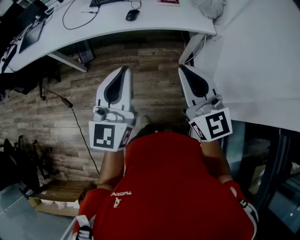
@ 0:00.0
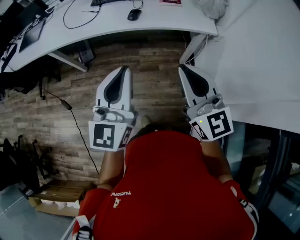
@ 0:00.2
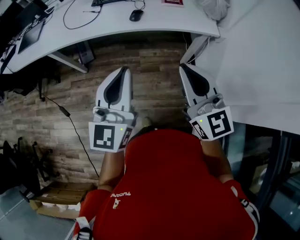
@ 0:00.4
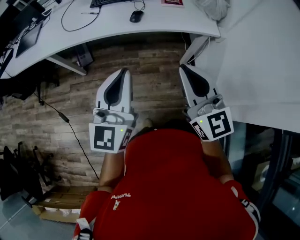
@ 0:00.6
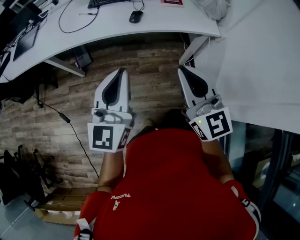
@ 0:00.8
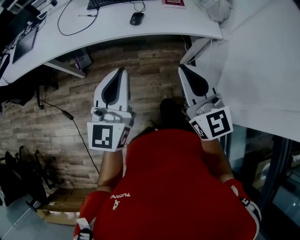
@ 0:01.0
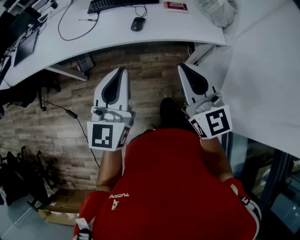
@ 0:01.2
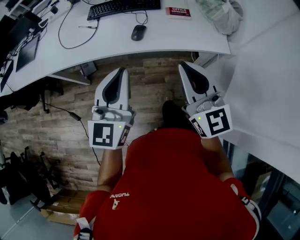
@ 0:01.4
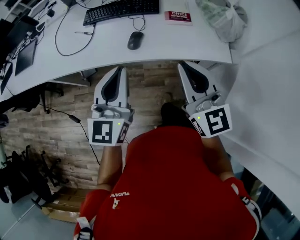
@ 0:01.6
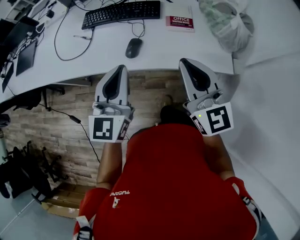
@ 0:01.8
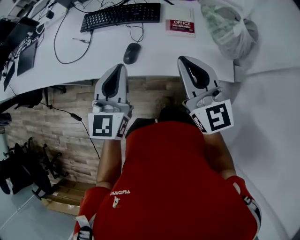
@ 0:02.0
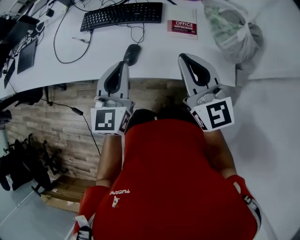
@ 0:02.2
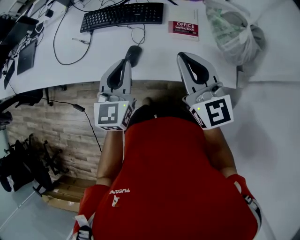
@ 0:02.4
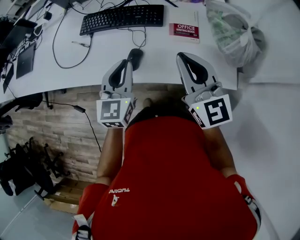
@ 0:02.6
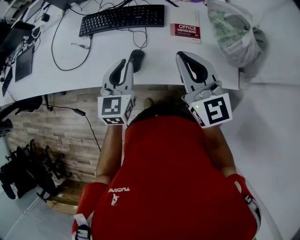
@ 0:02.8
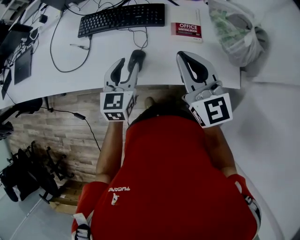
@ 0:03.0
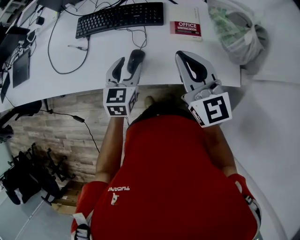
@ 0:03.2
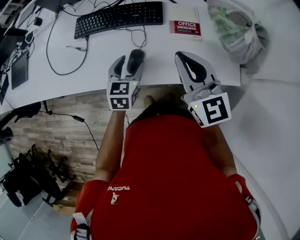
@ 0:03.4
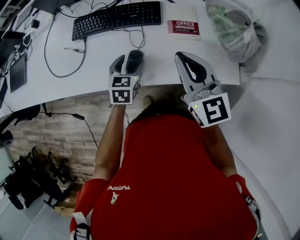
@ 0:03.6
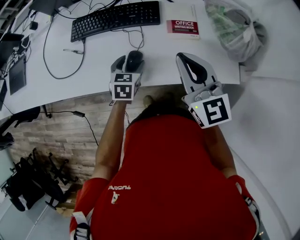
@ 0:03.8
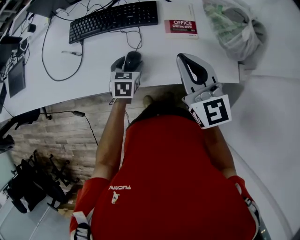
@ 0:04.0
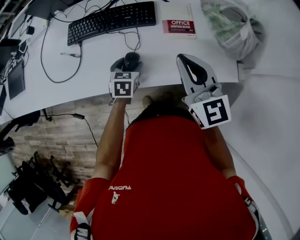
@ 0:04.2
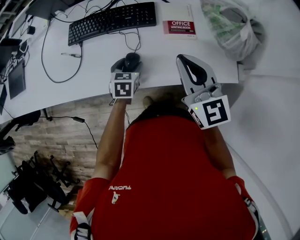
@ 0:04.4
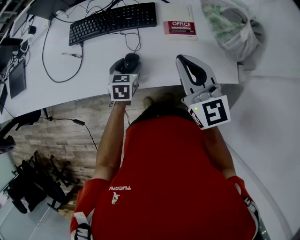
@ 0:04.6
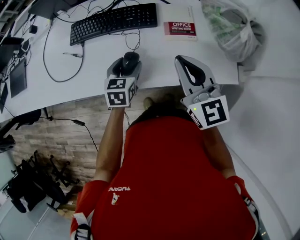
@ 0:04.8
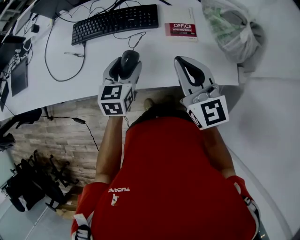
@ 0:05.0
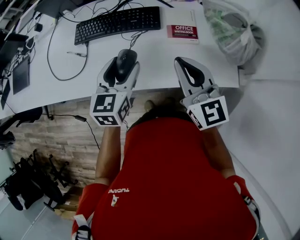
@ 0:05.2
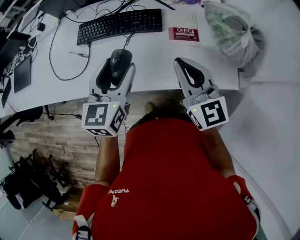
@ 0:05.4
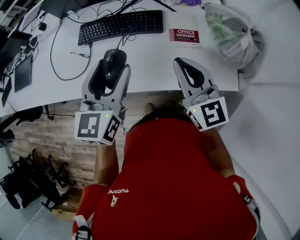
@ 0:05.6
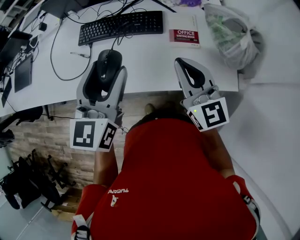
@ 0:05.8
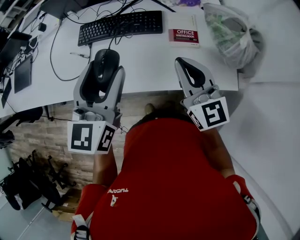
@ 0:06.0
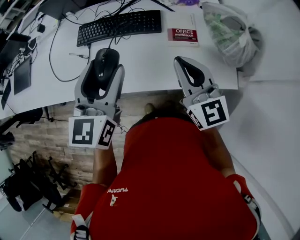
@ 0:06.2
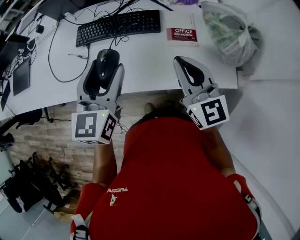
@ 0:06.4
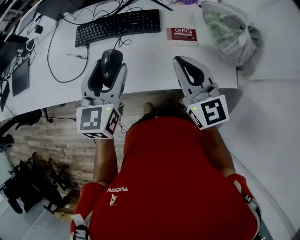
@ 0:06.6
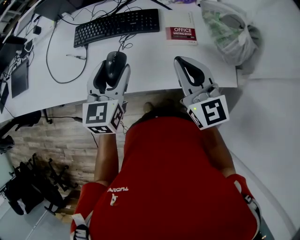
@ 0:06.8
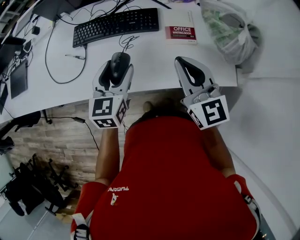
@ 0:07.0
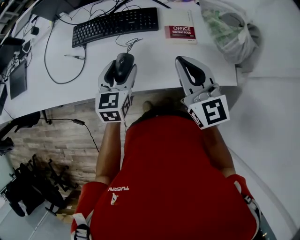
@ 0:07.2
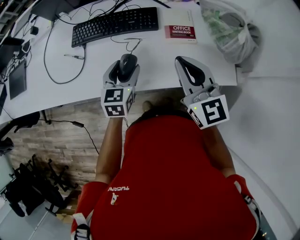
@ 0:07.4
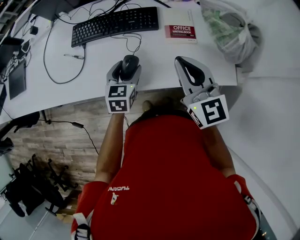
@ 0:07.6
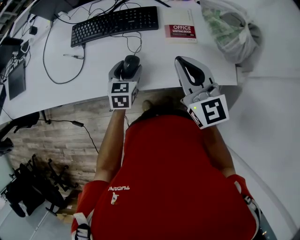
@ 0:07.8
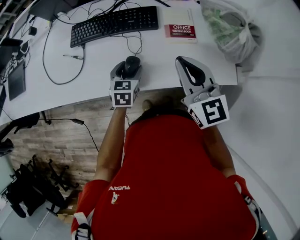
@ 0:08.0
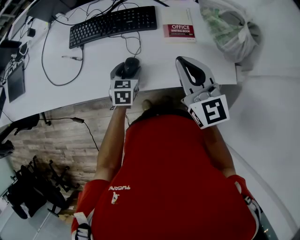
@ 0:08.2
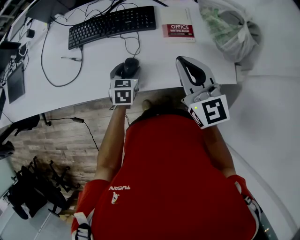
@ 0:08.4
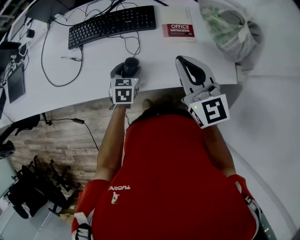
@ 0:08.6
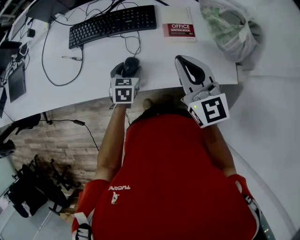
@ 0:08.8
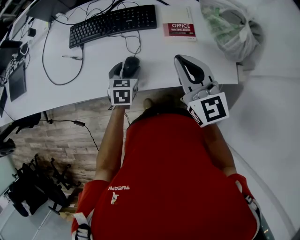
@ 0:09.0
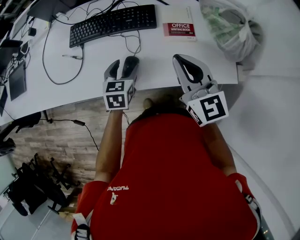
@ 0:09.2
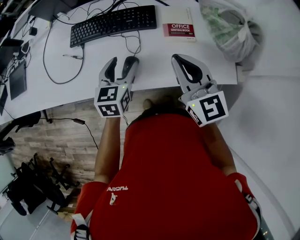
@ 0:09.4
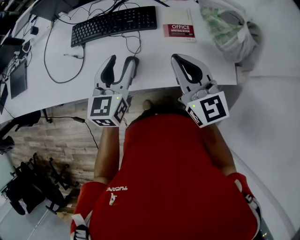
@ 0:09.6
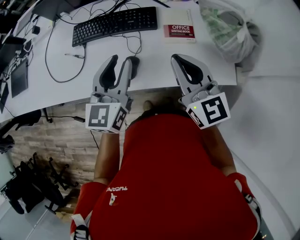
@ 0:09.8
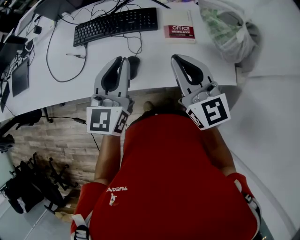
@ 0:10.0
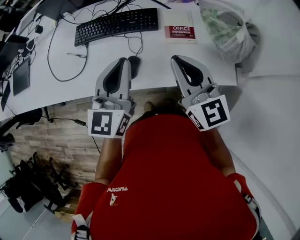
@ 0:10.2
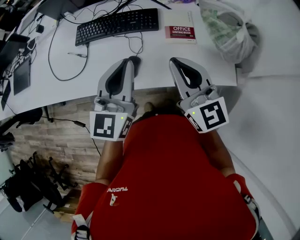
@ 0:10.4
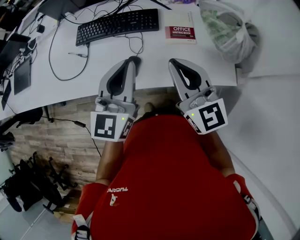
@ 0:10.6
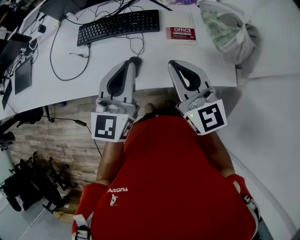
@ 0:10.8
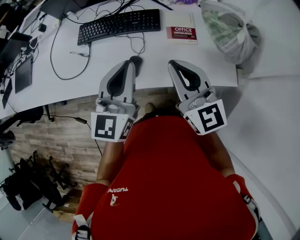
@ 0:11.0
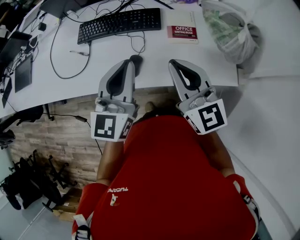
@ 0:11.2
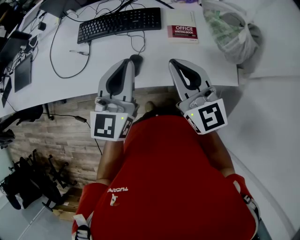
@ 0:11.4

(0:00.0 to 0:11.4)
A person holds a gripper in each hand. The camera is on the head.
0:00.0 - 0:01.4: Both grippers move forward, roughly 20 cm.
0:01.4 - 0:02.8: The right gripper moves forward, roughly 25 cm. Meanwhile the left gripper moves forward and downward, about 30 cm, and changes its angle by approximately 20 degrees.
0:02.8 - 0:04.2: The left gripper is displaced downward by about 15 cm, angles its fingers downward, by approximately 30 degrees, and opens its fingers.
0:04.2 - 0:05.6: The left gripper shifts about 30 cm upward, and tips its fingers upward by about 40 degrees.
0:05.6 - 0:07.2: The left gripper travels downward by approximately 15 cm.
0:07.2 - 0:08.6: The left gripper travels downward by roughly 15 cm, and rotates some 20 degrees.
0:08.6 - 0:10.0: The left gripper goes about 25 cm upward, tilts its fingers approximately 40 degrees upward, and closes.
0:10.0 - 0:11.4: The grippers move only a little.

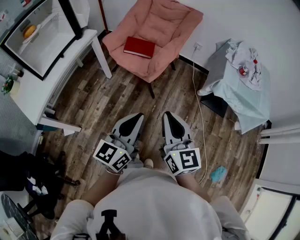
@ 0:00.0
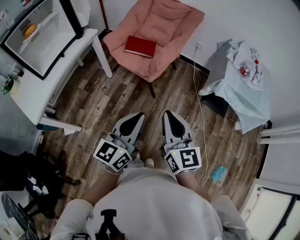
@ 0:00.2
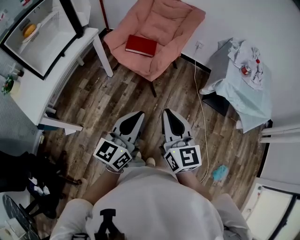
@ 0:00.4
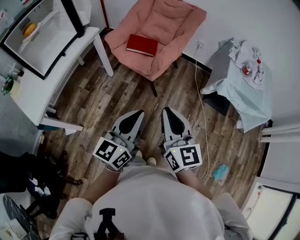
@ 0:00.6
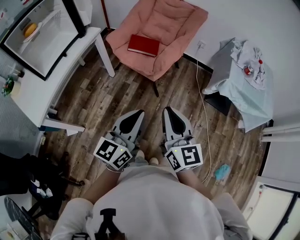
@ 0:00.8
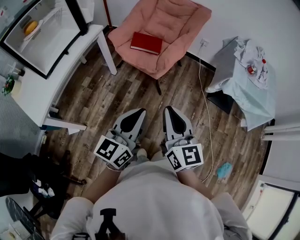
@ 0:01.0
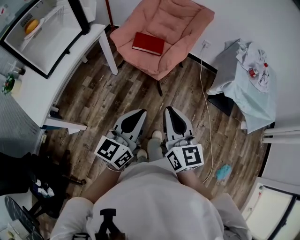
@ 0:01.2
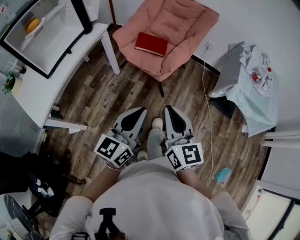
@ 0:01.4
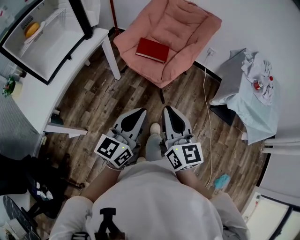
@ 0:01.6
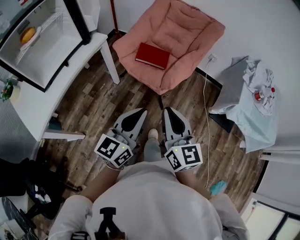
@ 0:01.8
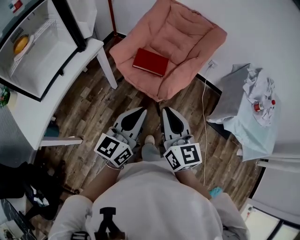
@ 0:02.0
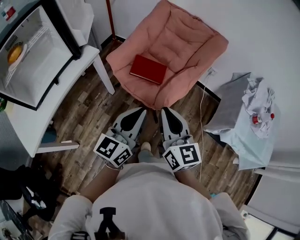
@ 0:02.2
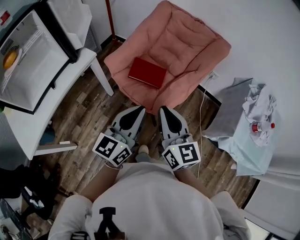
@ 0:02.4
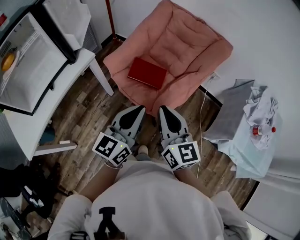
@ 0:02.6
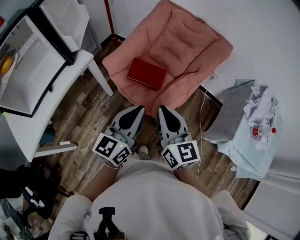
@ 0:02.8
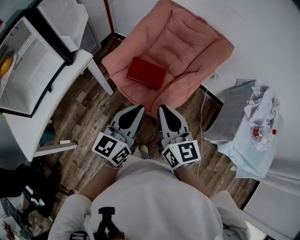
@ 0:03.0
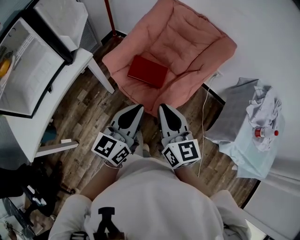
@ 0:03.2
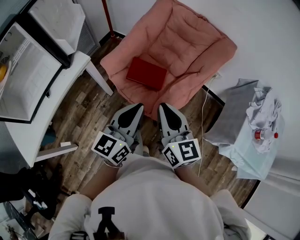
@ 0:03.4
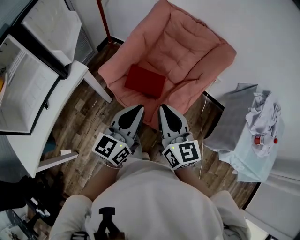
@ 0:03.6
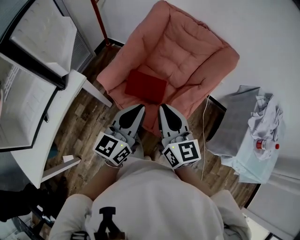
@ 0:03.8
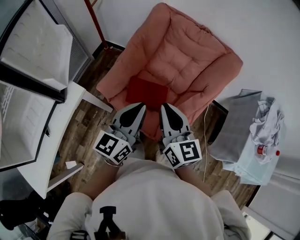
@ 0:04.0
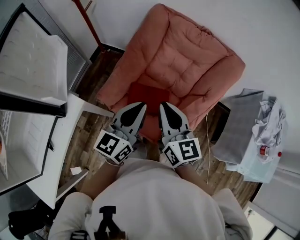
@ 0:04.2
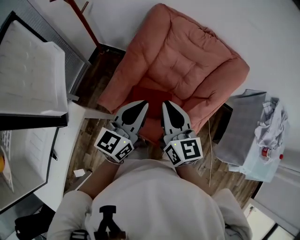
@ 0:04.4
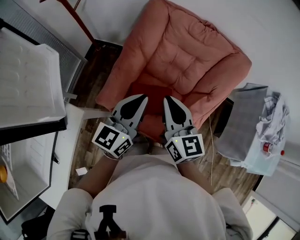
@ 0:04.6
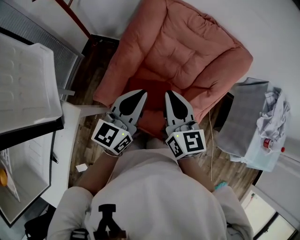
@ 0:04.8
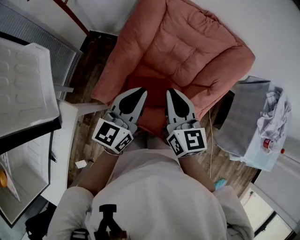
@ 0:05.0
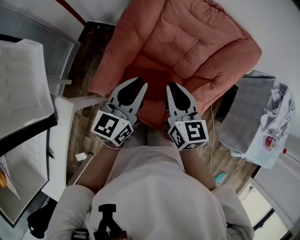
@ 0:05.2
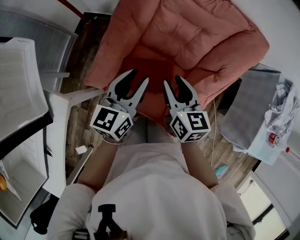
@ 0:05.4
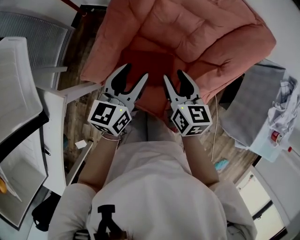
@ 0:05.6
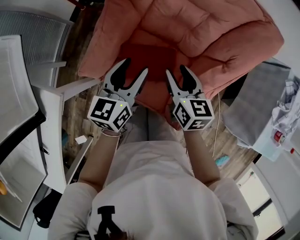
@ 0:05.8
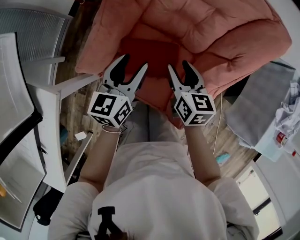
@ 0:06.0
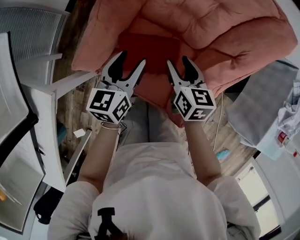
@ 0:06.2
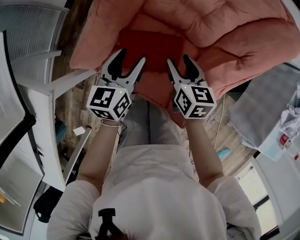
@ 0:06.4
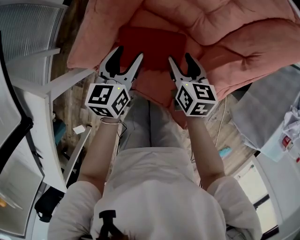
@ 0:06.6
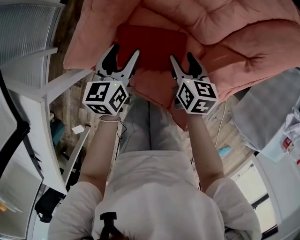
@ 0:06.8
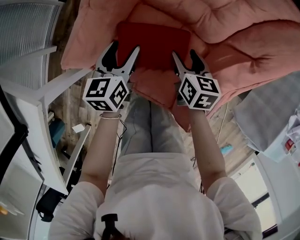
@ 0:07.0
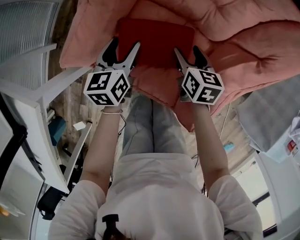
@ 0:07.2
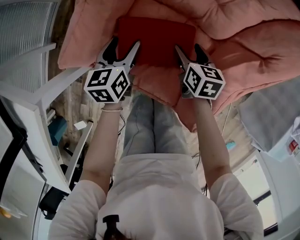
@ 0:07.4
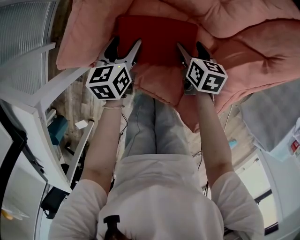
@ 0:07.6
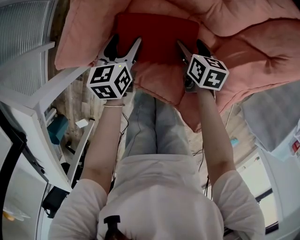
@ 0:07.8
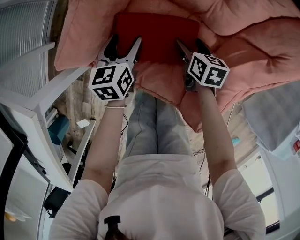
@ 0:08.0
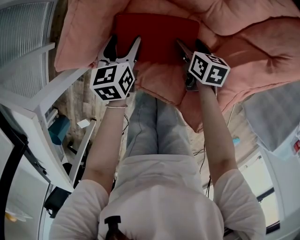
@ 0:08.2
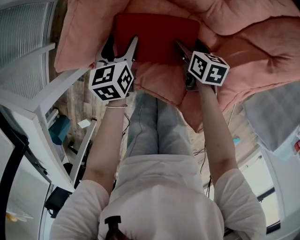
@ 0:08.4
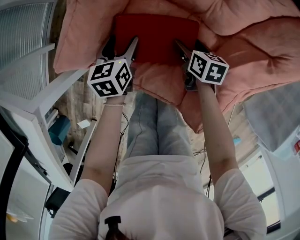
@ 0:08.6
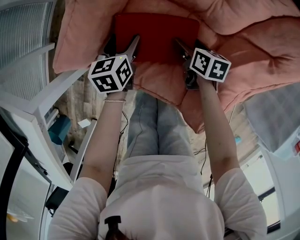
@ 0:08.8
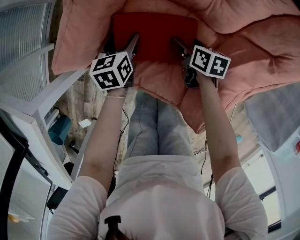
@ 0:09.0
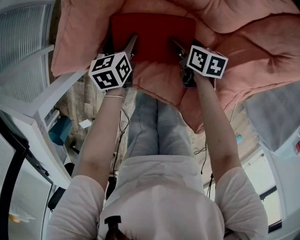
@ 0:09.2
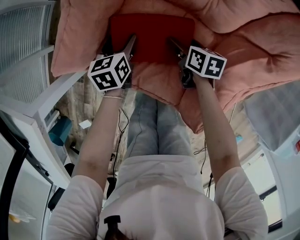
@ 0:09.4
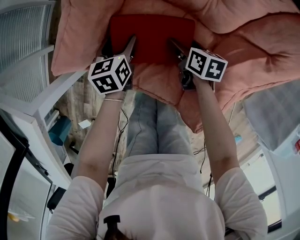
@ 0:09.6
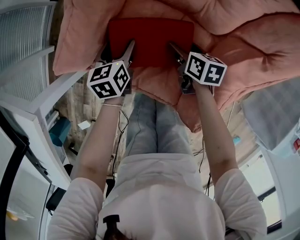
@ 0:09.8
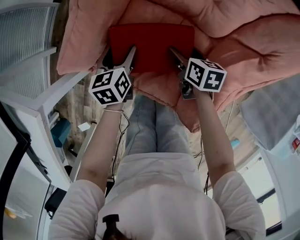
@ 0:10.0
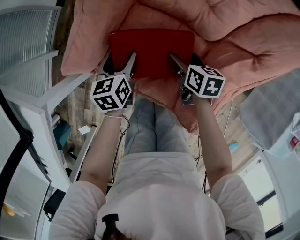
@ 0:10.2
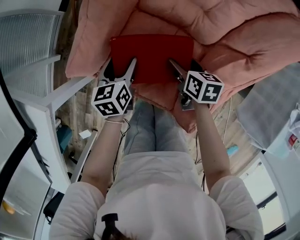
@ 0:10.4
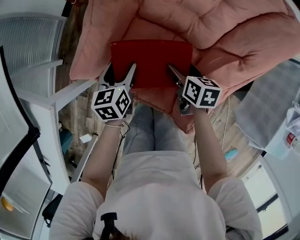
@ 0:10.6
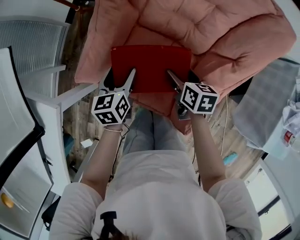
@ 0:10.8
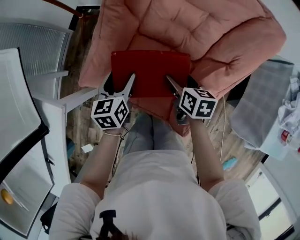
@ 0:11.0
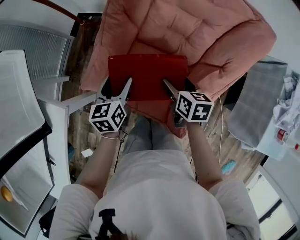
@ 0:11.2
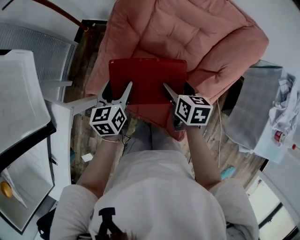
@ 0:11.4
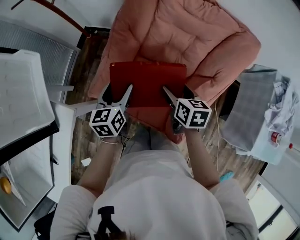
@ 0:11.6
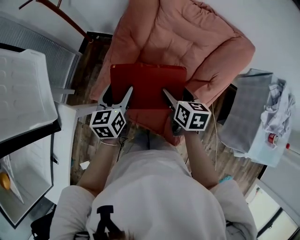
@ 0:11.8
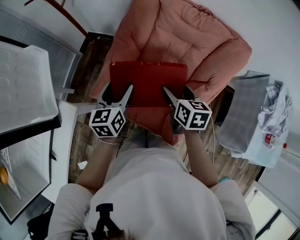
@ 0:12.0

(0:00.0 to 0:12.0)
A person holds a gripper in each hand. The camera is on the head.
0:00.0 - 0:01.6: The left gripper goes roughly 15 cm forward and to the left, while the right gripper goes roughly 15 cm to the left and forward.
0:01.6 - 0:03.0: The grippers both shift forward by approximately 30 cm.
0:03.0 - 0:04.4: The grippers both shift forward by about 30 cm.
0:04.4 - 0:06.0: The two grippers go about 20 cm downward. The left gripper swivels roughly 20 degrees, and opens; the right gripper turns by some 30 degrees, and opens up.
0:06.0 - 0:07.6: The two grippers go about 20 cm downward.
0:07.6 - 0:09.0: Both grippers travel together downward, roughly 5 cm.
0:09.0 - 0:10.4: Both grippers travel together upward, about 10 cm.
0:10.4 - 0:12.0: Both grippers move upward, about 25 cm.
